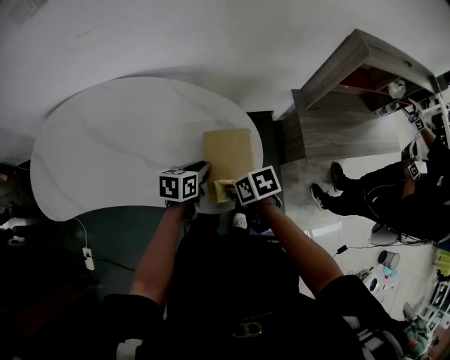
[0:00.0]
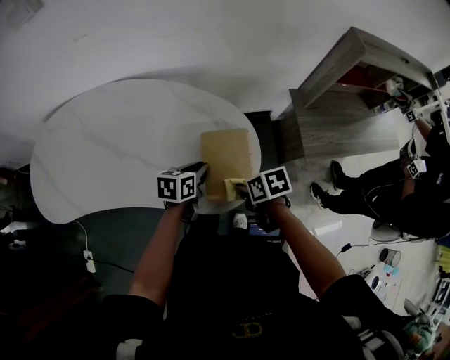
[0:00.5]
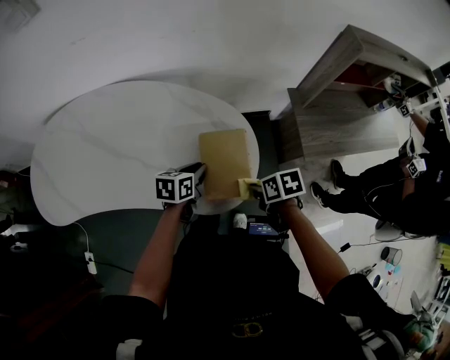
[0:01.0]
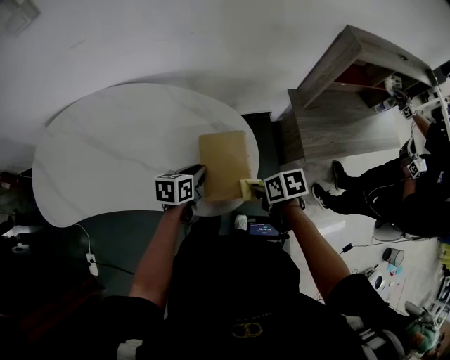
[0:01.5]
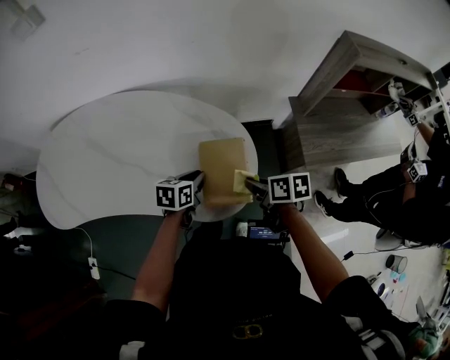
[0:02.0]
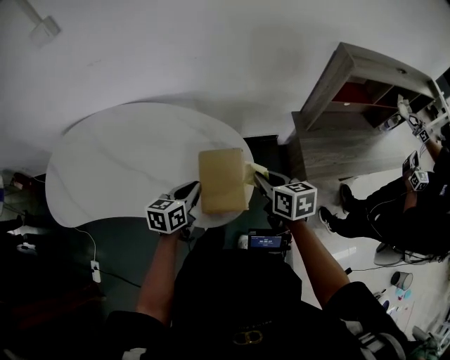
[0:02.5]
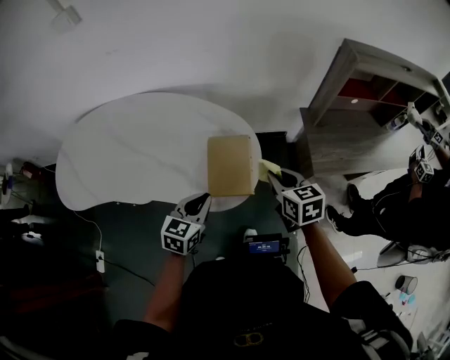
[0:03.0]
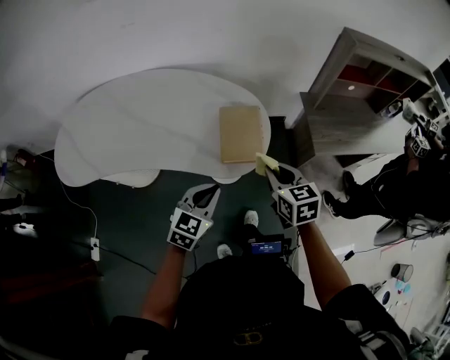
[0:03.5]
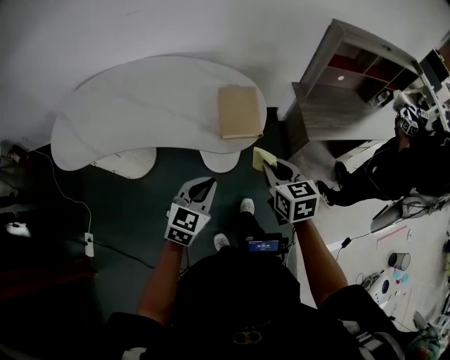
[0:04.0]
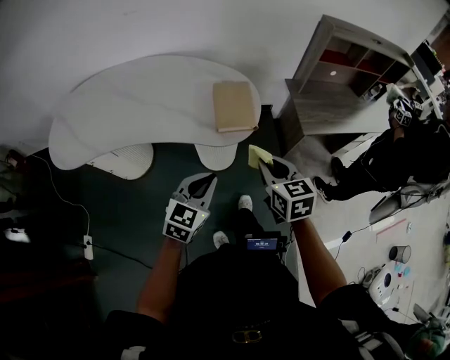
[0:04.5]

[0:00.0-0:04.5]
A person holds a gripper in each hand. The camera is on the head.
0:00.0 to 0:02.0: The right gripper is displaced to the right by some 10 cm, and rotates approximately 20 degrees.
0:02.0 to 0:04.5: The left gripper shifts approximately 30 cm backward, and turns by about 40 degrees. Meanwhile the right gripper heads backward and upward, covering some 25 cm, and changes its angle by roughly 50 degrees.

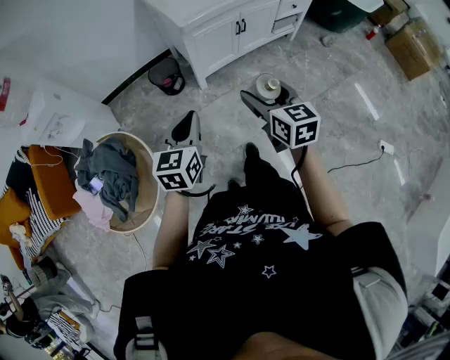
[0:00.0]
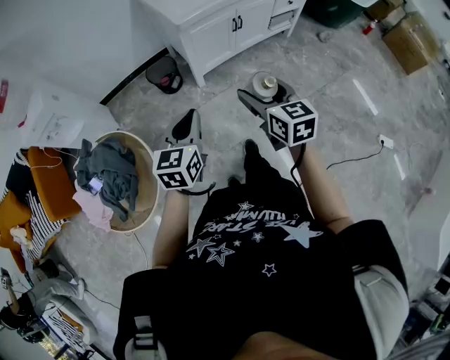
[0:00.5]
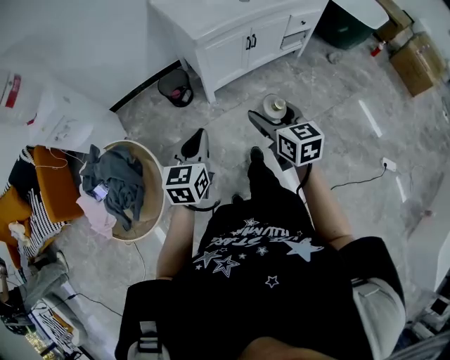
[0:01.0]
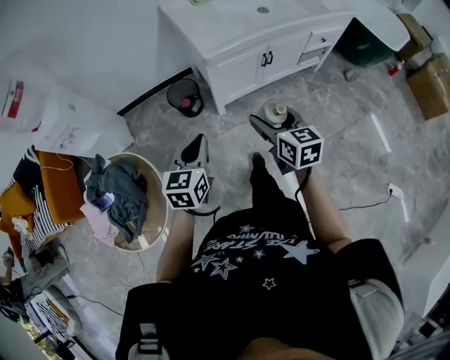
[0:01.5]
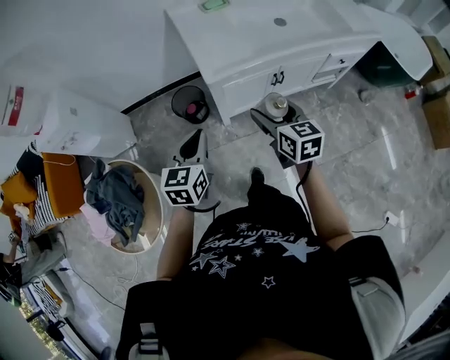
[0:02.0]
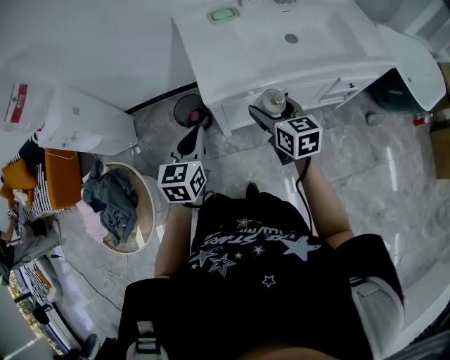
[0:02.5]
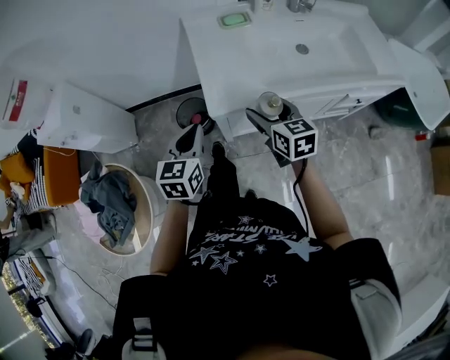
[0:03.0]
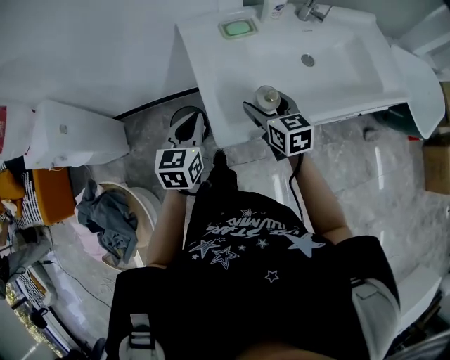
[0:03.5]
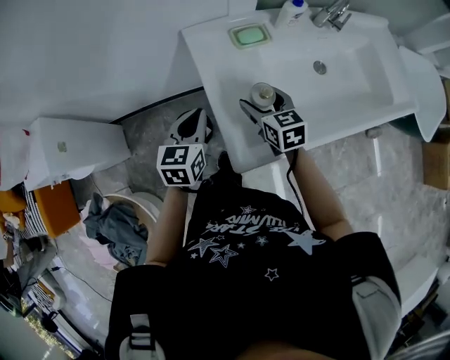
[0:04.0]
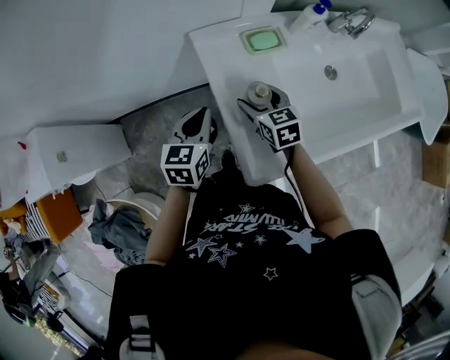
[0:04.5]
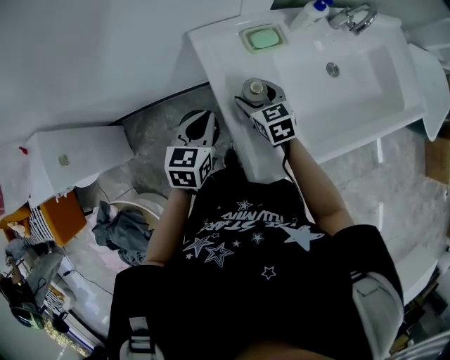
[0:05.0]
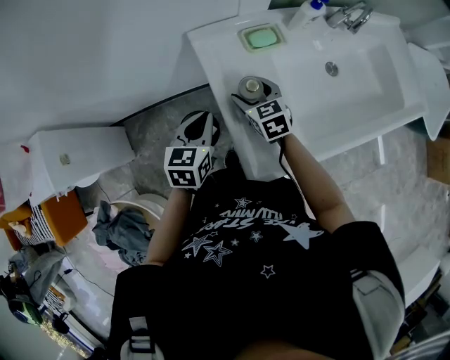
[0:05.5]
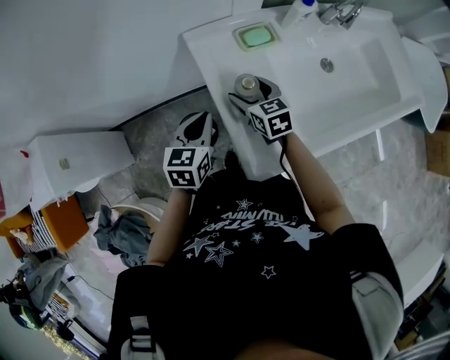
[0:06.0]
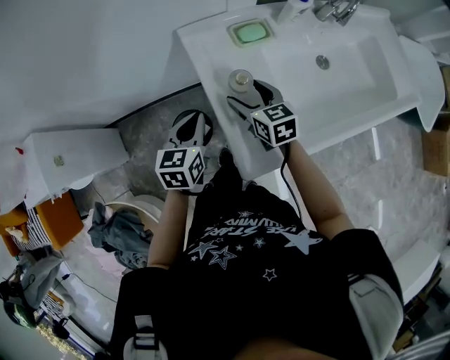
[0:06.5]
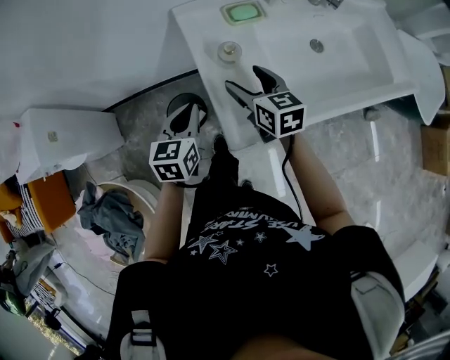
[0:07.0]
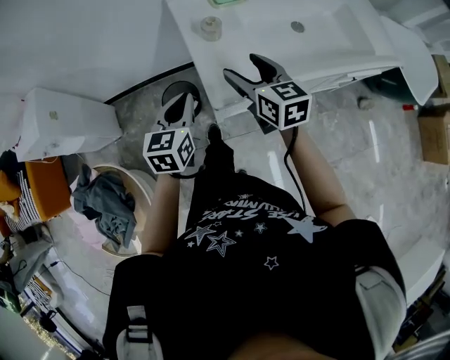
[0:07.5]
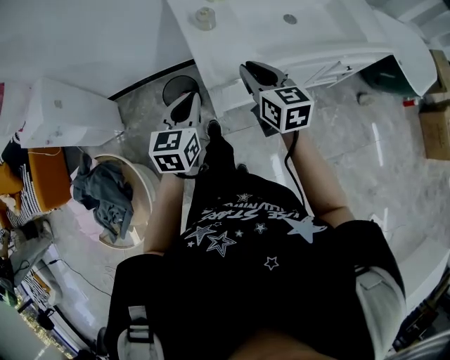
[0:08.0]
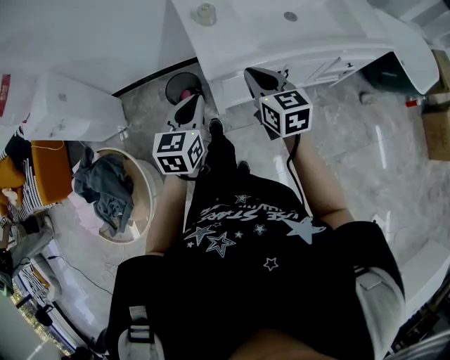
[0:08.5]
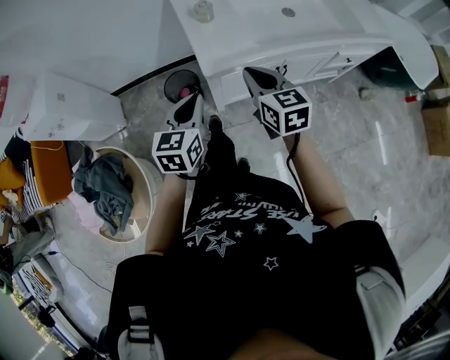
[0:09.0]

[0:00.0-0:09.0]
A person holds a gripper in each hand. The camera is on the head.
0:00.0 to 0:02.0: The grippers both shift forward by about 30 cm.
0:02.0 to 0:04.5: The two grippers travel together, forward, approximately 50 cm.
0:04.5 to 0:07.0: The left gripper heads backward, covering approximately 10 cm, while the right gripper goes approximately 10 cm backward and upward.
0:07.0 to 0:09.0: The two grippers go roughly 30 cm backward. The right gripper closes its fingers.

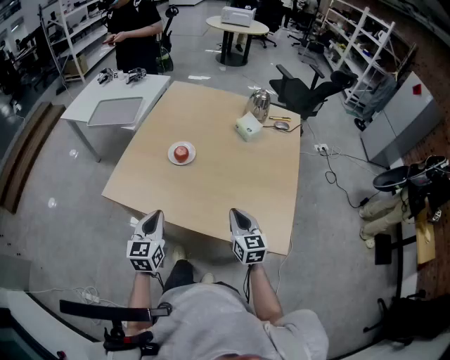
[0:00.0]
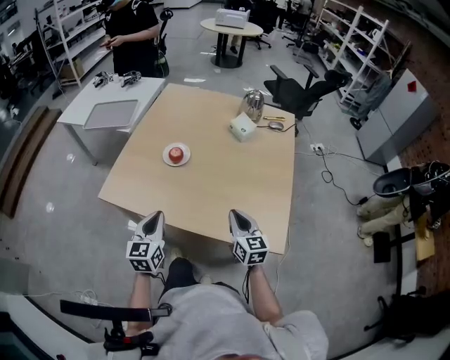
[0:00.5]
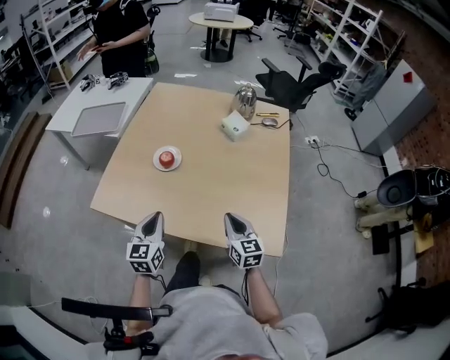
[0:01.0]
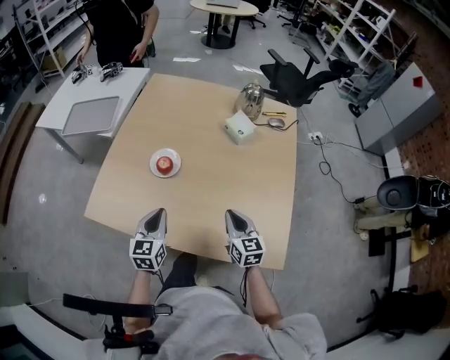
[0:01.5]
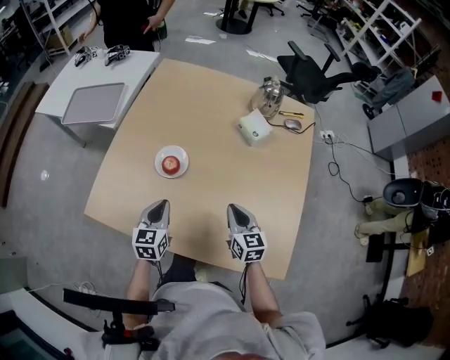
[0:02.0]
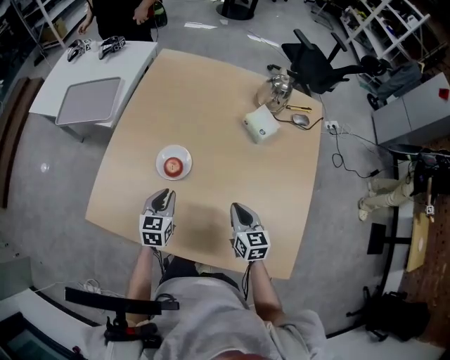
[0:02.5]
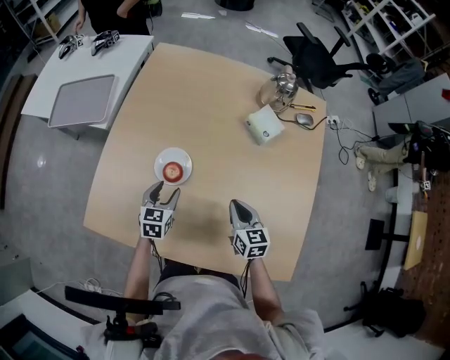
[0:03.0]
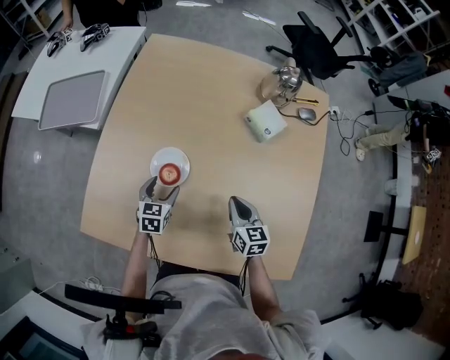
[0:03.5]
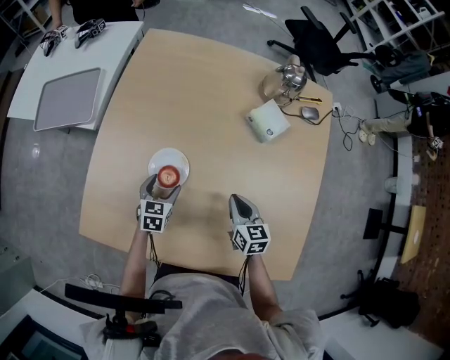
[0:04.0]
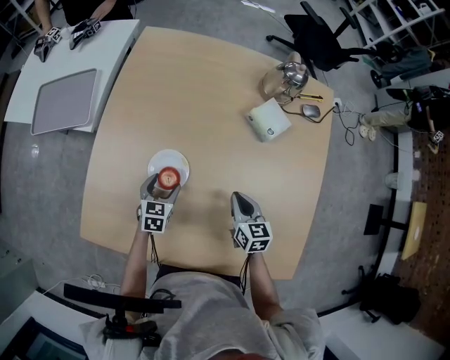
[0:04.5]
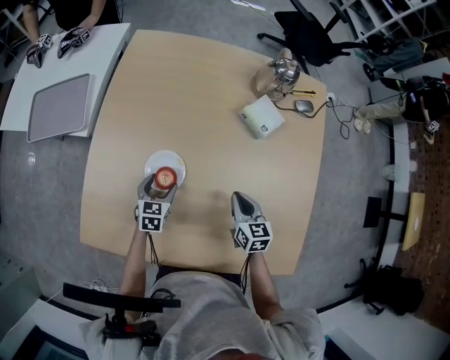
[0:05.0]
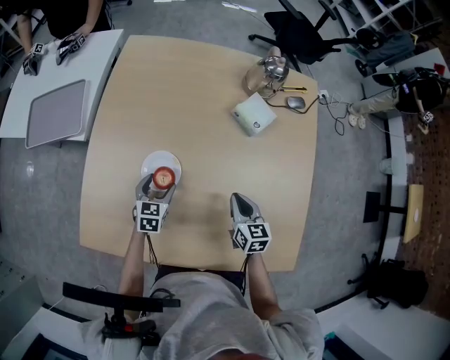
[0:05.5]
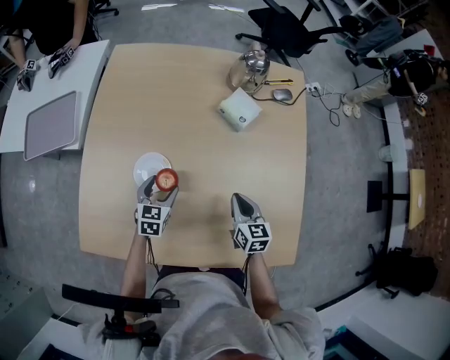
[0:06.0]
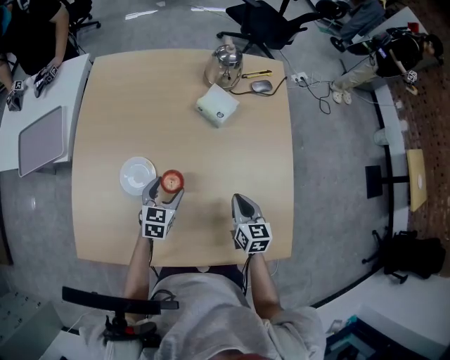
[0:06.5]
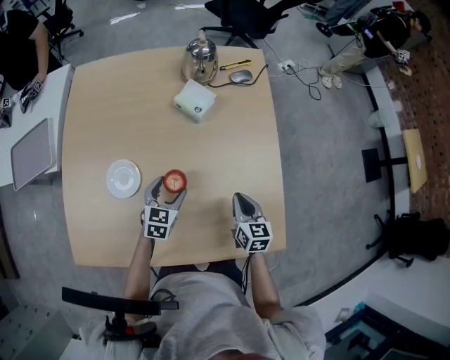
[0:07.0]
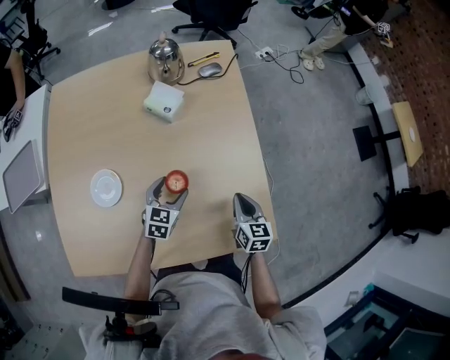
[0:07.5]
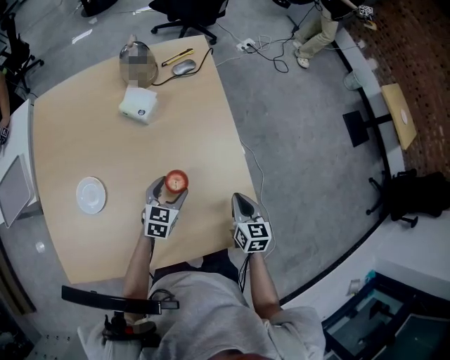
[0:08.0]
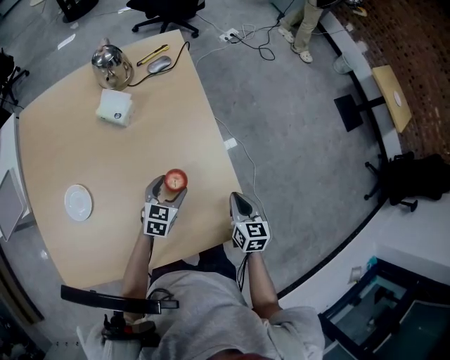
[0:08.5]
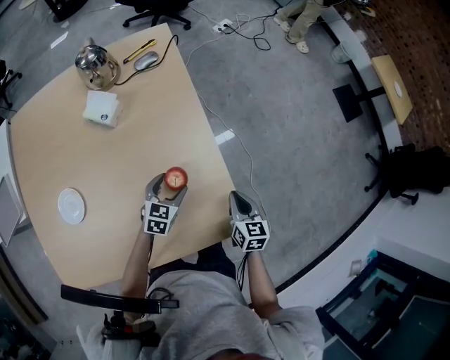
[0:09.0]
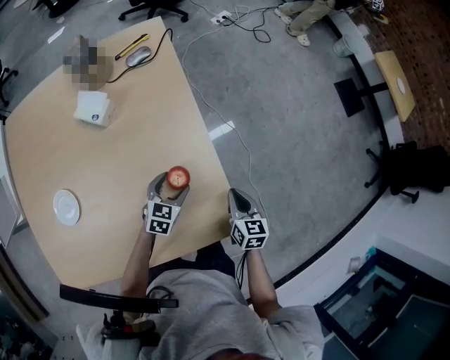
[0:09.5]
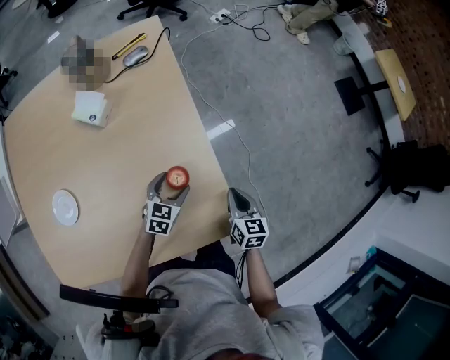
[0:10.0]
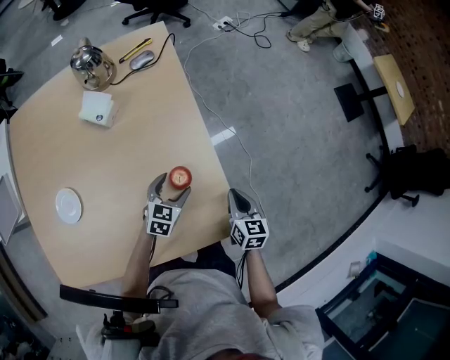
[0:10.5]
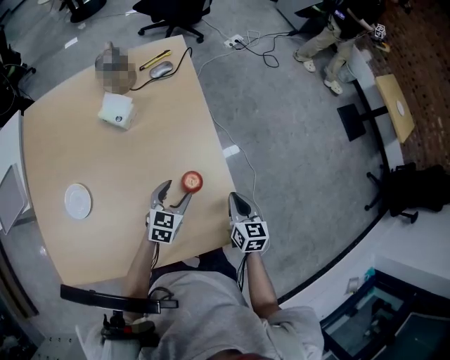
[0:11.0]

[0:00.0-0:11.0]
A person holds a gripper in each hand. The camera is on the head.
0:00.0 to 0:02.0: The left gripper shifts roughly 25 cm forward and downward. Meanwhile the right gripper is displaced forward by about 20 cm.
0:02.0 to 0:03.5: The right gripper goes about 10 cm forward and downward, while the left gripper is displaced forward and downward by roughly 20 cm, and opens its fingers.
0:03.5 to 0:05.5: The grippers stay close to where they were, moving slightly.
0:05.5 to 0:07.5: Both grippers travel together to the right, about 25 cm. The right gripper turns by about 20 degrees. The left gripper changes its angle by some 30 degrees.
0:07.5 to 0:09.0: The grippers both shift to the right by about 15 cm.
0:09.0 to 0:11.0: The grippers make only small movements.

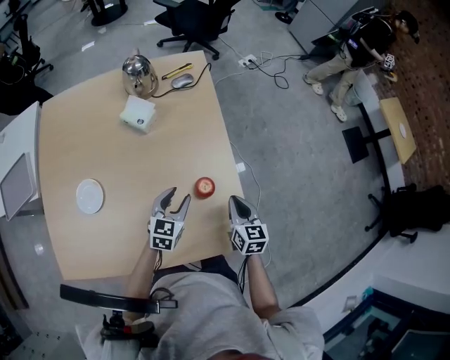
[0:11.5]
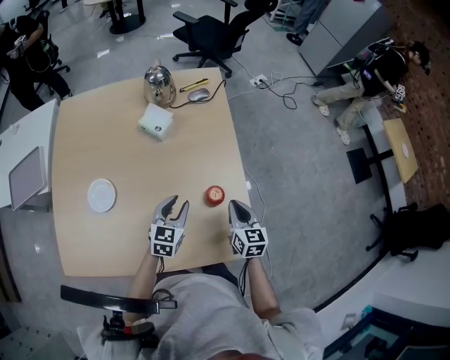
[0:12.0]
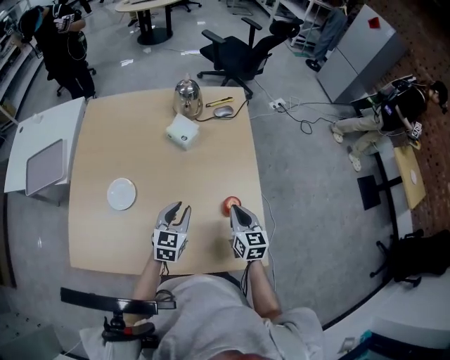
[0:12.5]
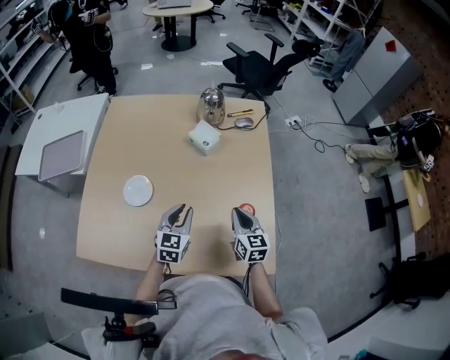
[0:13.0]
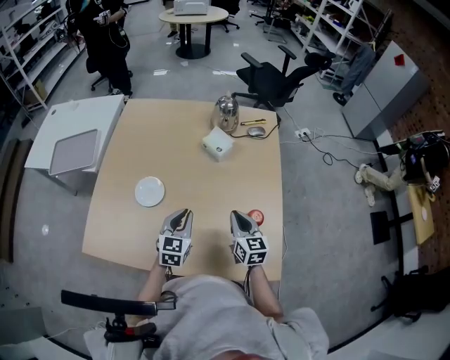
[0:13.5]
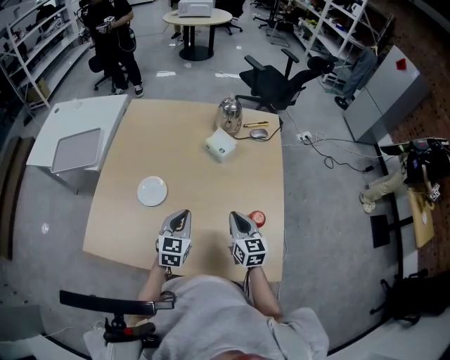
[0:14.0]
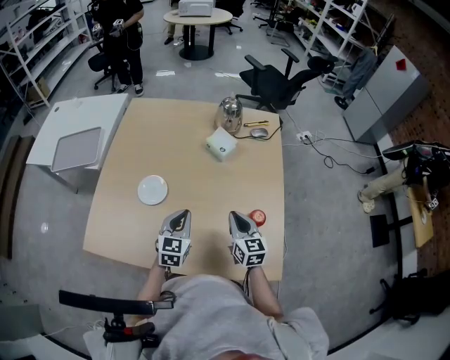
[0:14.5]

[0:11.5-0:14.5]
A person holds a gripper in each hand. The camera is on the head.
0:11.5 to 0:13.0: The left gripper is displaced to the left and upward by approximately 20 cm, and changes its angle by roughly 20 degrees. The right gripper moves to the left, about 15 cm.
0:13.0 to 0:14.5: Both grippers travel together to the left, about 5 cm.
